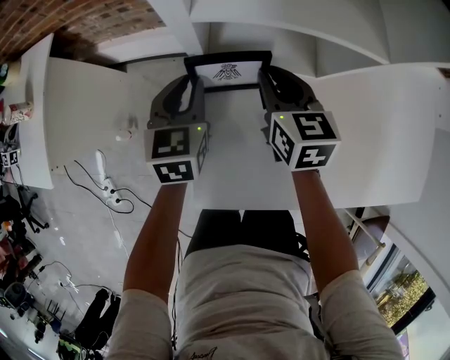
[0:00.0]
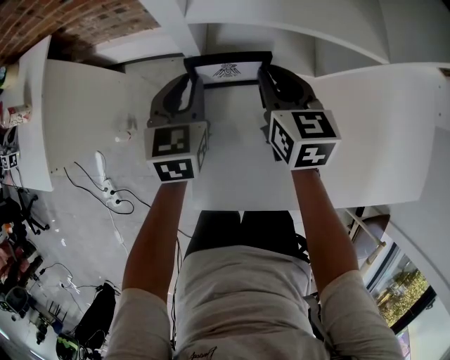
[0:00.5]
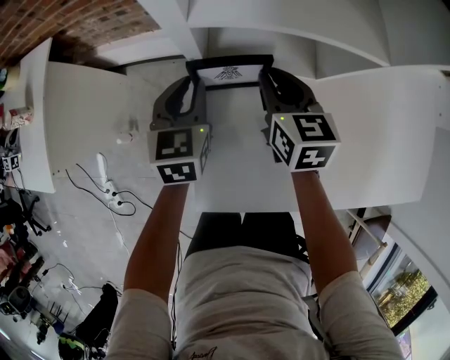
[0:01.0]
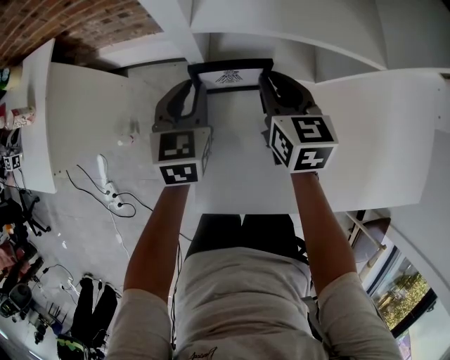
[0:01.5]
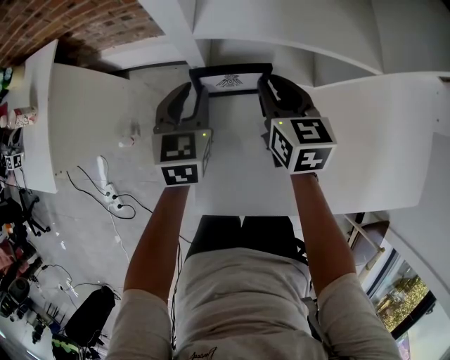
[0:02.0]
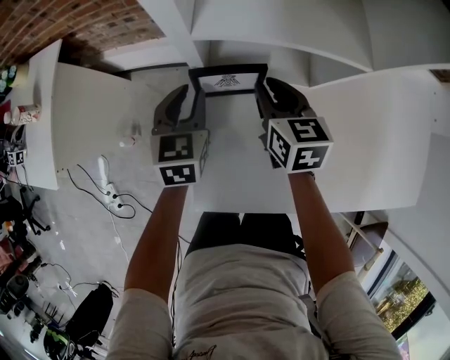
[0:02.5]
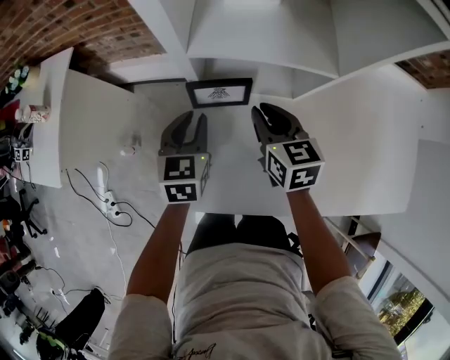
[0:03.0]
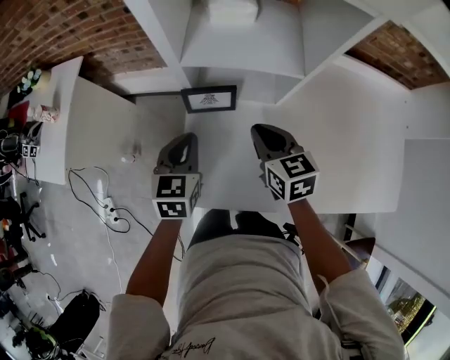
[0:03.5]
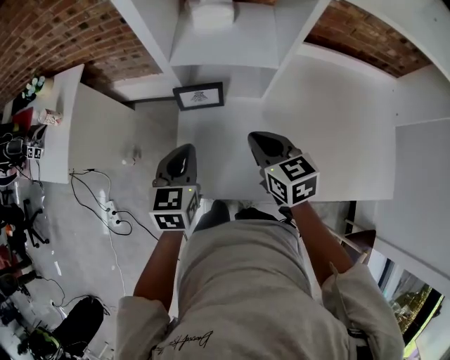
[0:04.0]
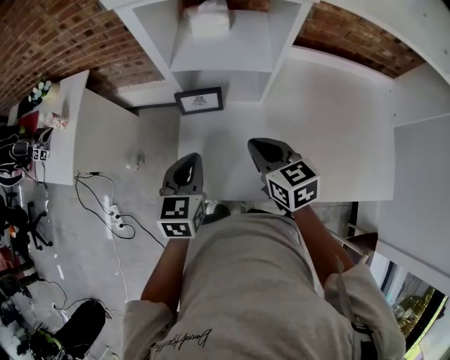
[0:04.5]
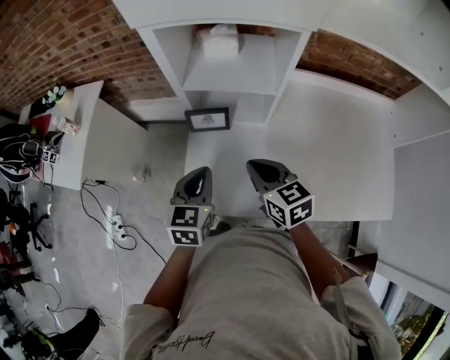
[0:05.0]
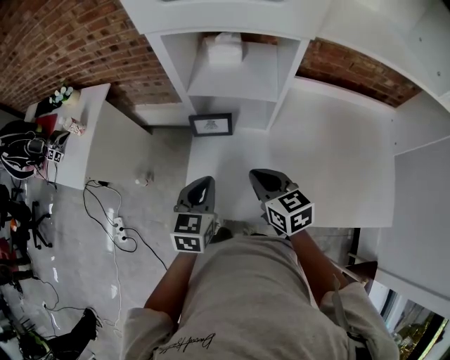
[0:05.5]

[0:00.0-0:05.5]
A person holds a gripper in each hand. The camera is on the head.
0:00.0 to 0:02.0: Neither gripper changes place.
0:02.0 to 0:03.5: Both grippers travel together backward and upward, some 15 cm.
0:03.5 to 0:05.5: Both grippers move backward and upward, approximately 15 cm.

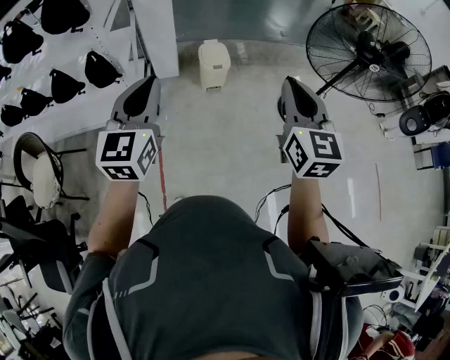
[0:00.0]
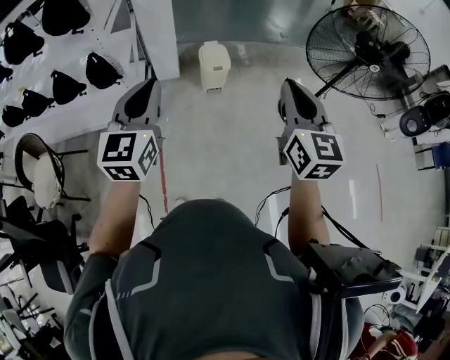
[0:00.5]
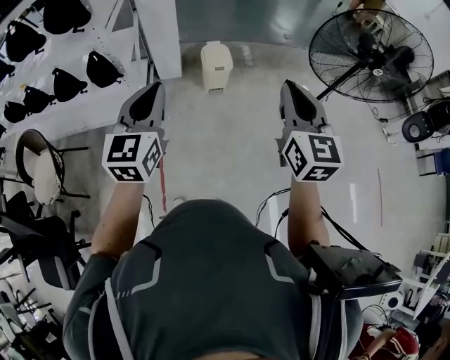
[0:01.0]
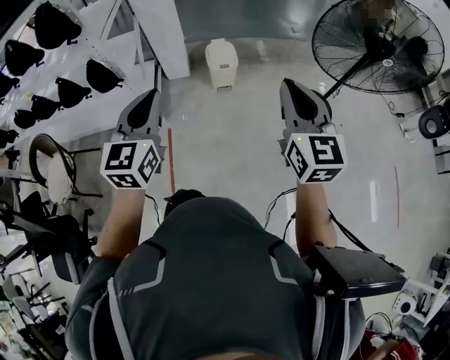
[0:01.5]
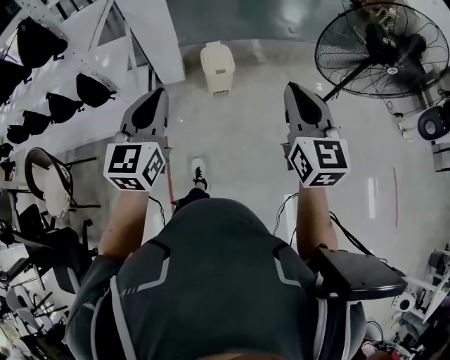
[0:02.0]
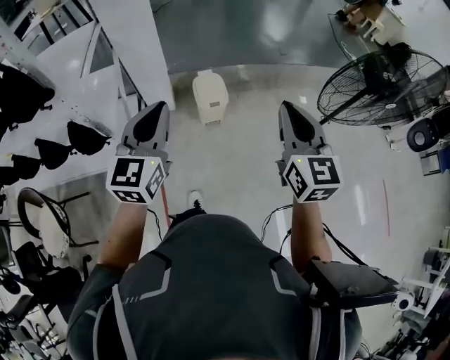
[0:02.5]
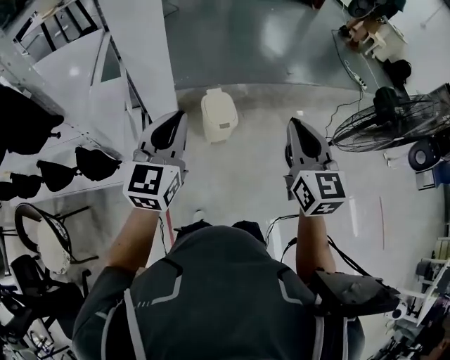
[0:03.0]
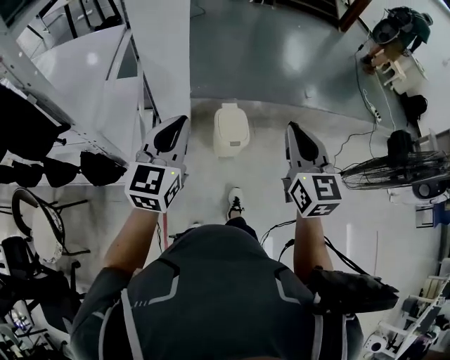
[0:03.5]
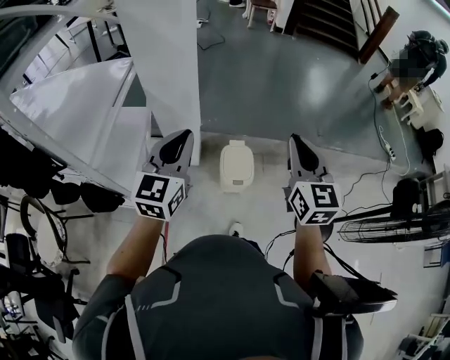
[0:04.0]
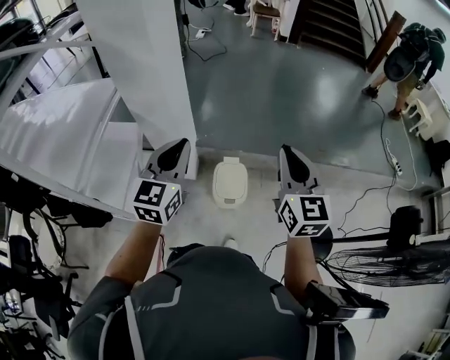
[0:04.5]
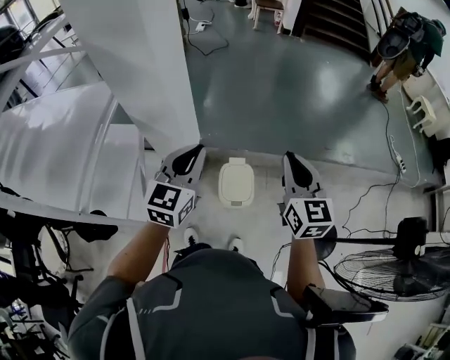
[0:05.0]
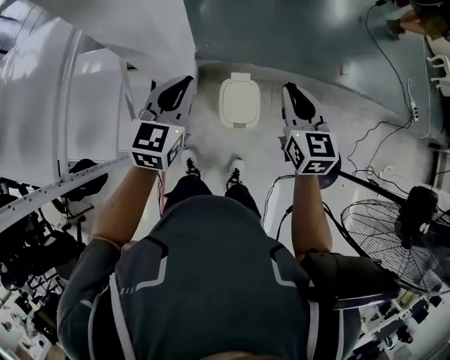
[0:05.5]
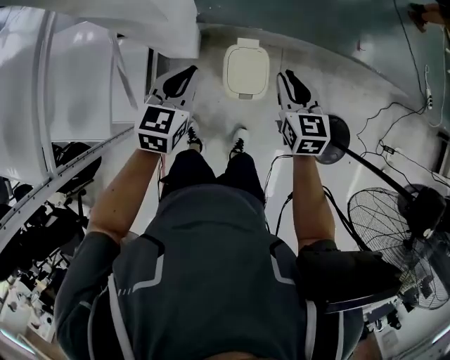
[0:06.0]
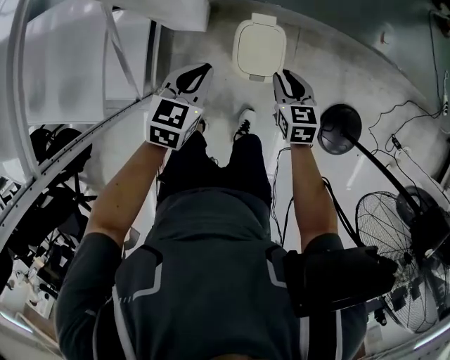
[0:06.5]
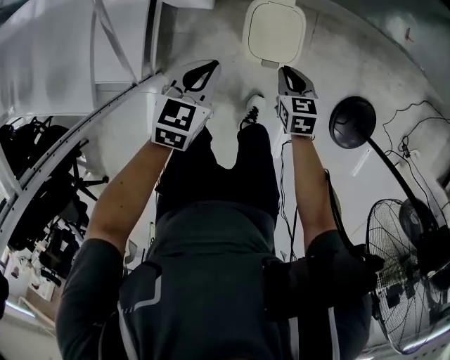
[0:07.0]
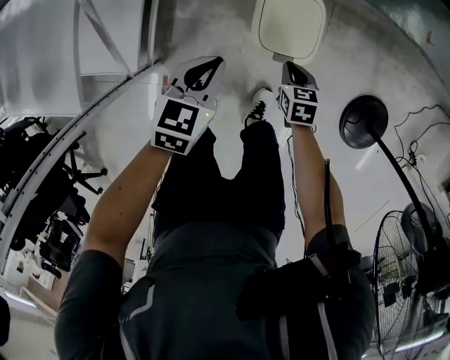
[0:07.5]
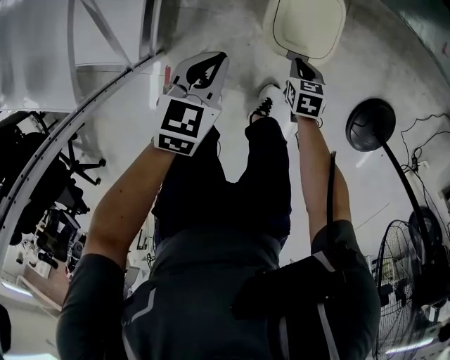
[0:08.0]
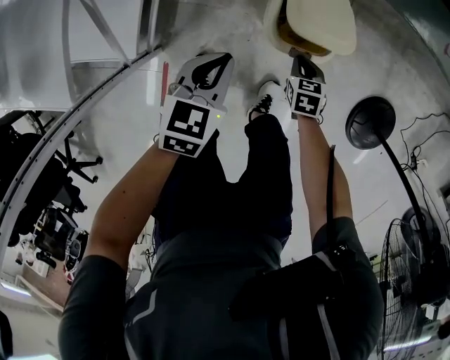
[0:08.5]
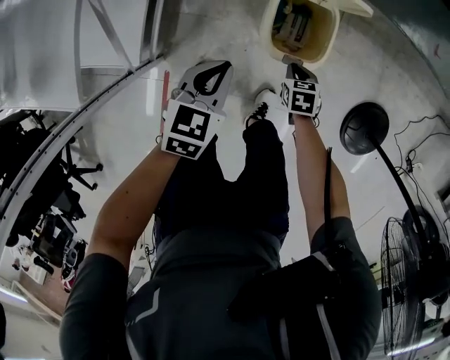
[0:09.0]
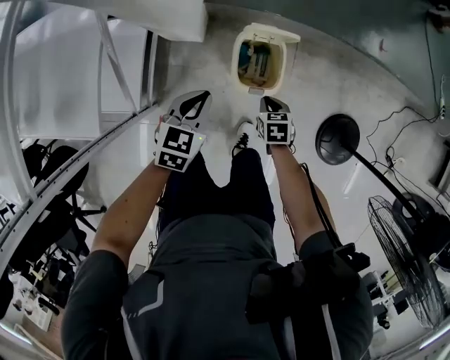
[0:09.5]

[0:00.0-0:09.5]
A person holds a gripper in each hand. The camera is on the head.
0:00.0 to 0:02.0: The grippers both shift forward and to the right by some 10 cm.
0:02.0 to 0:04.0: Both grippers are carried forward, some 50 cm.
0:04.0 to 0:05.5: Both grippers travel together forward and downward, roughly 30 cm.
0:05.5 to 0:07.5: Both grippers move downward, roughly 50 cm. The right gripper tilts its fingers some 40 degrees downward, while the left gripper changes its angle by approximately 30 degrees.
0:07.5 to 0:09.5: Both grippers travel together upward, about 10 cm.

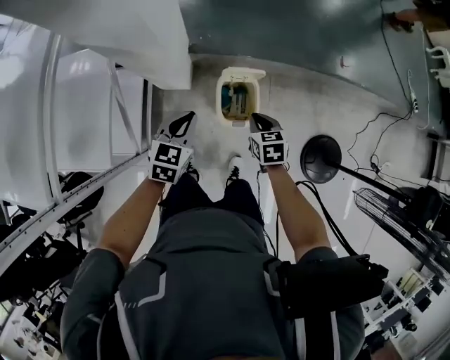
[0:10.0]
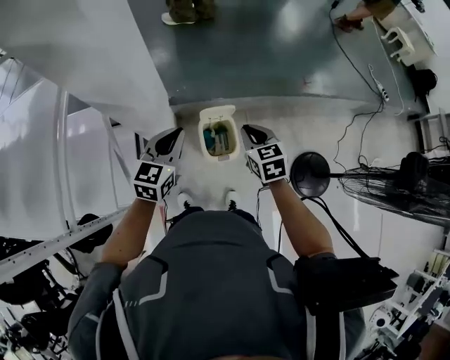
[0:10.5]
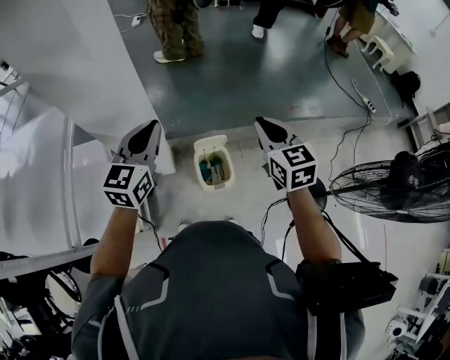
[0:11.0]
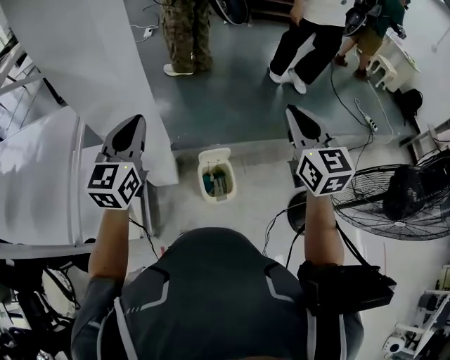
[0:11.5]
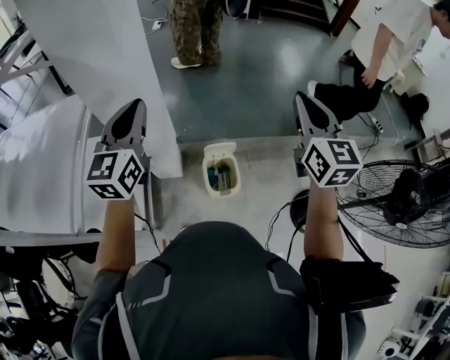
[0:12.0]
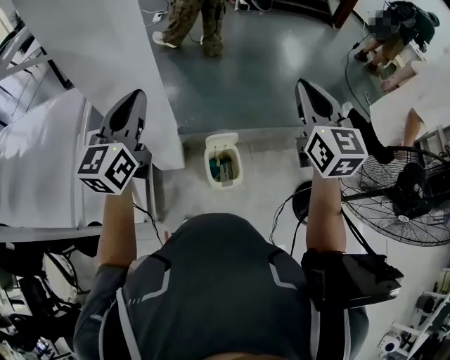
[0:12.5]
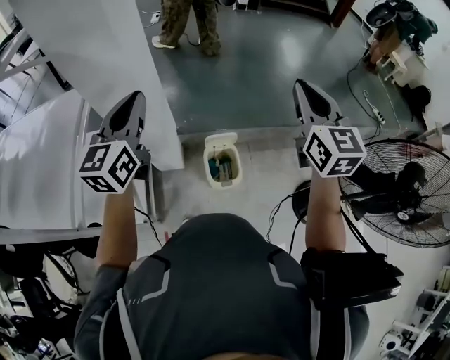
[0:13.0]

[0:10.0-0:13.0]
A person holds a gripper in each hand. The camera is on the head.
0:10.0 to 0:11.5: The two grippers go some 40 cm upward. The right gripper angles its fingers upward, by about 50 degrees. Meanwhile the left gripper tips its fingers upward by roughly 30 degrees.
0:11.5 to 0:13.0: There are only small adjustments of the grippers.

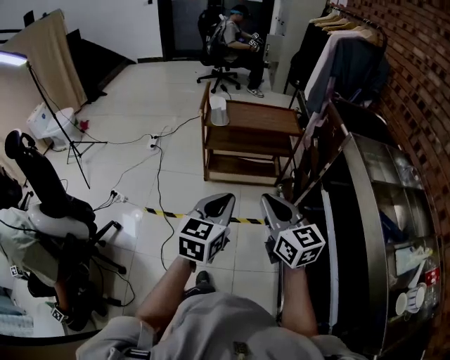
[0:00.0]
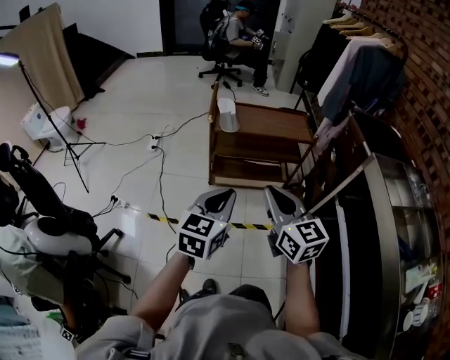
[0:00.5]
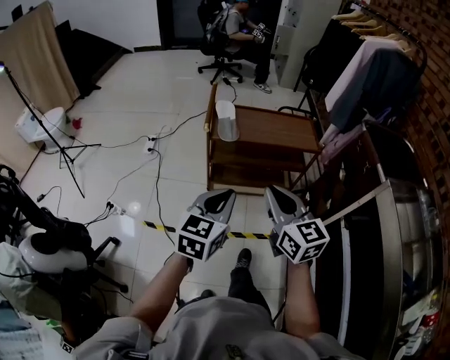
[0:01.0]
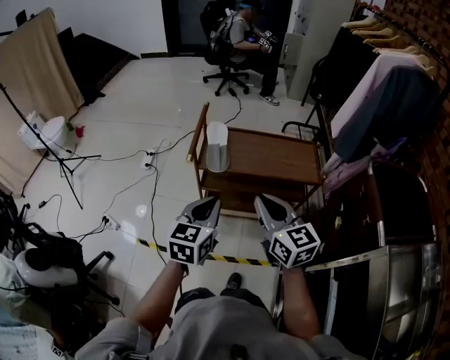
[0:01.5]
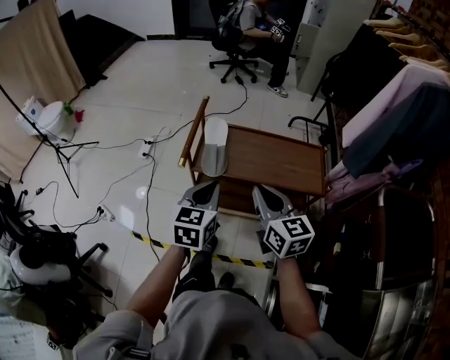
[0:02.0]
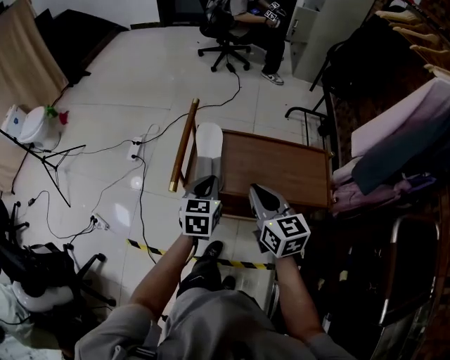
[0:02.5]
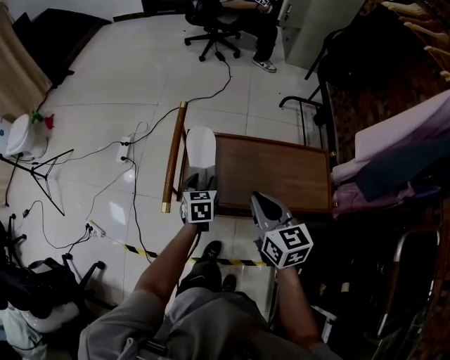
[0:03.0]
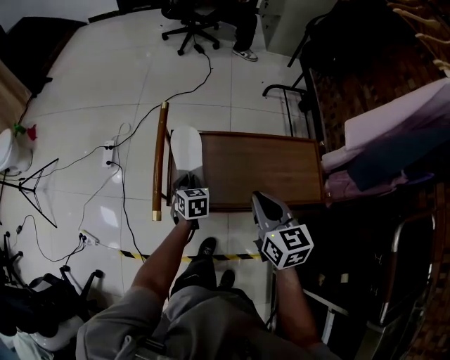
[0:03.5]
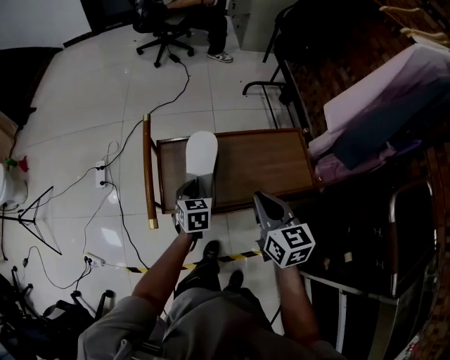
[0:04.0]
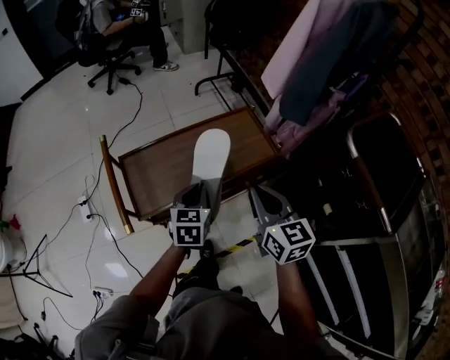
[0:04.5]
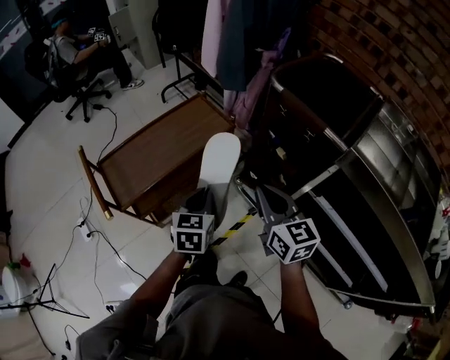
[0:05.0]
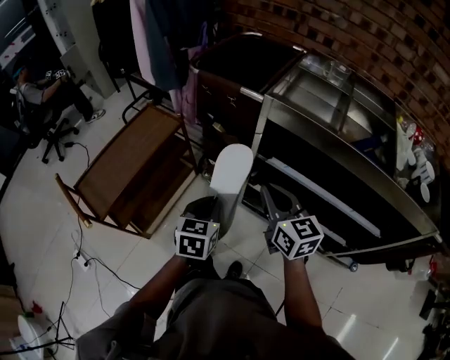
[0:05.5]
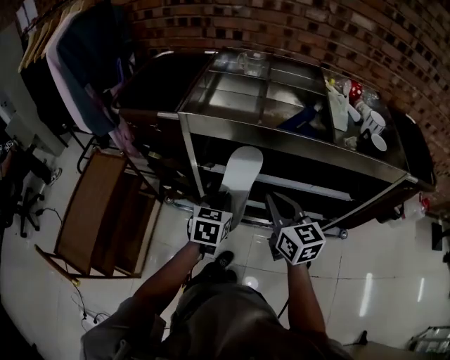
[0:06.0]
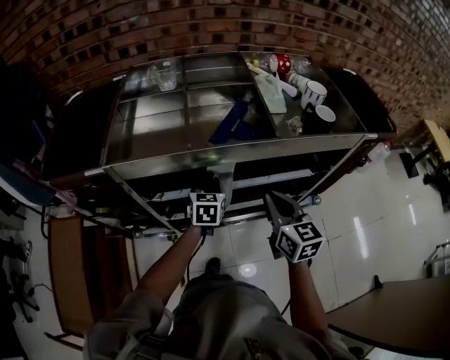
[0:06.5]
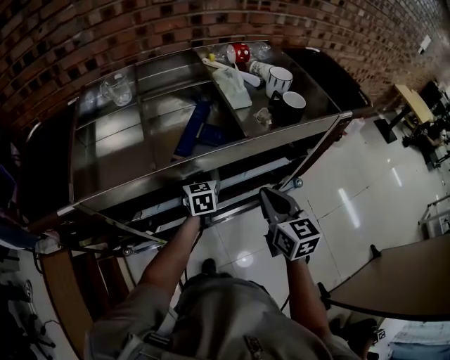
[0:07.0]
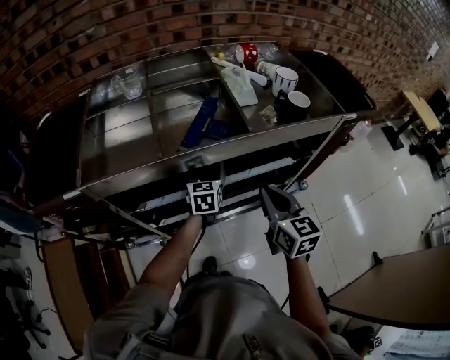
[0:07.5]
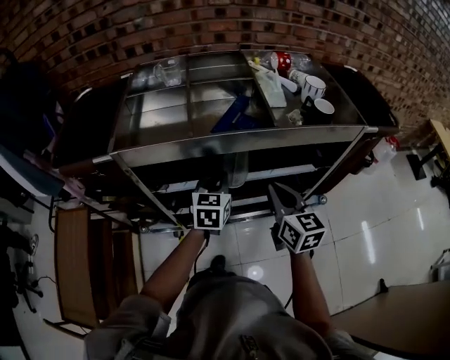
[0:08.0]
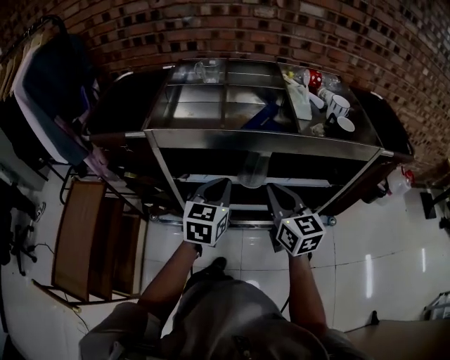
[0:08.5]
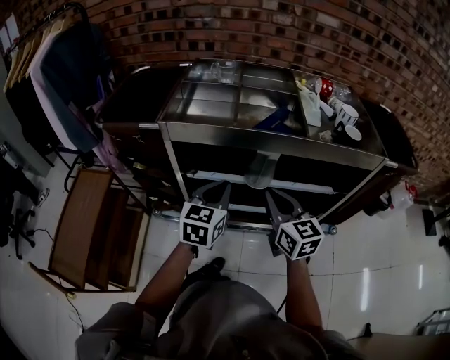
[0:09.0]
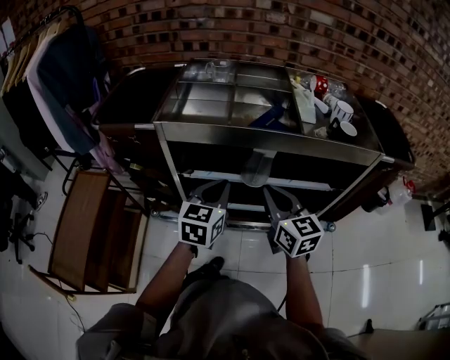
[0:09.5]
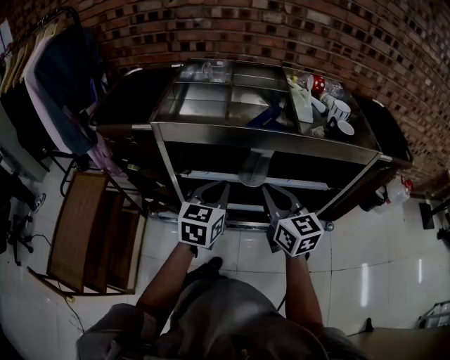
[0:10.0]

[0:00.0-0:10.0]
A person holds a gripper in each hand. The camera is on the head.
0:00.0 to 0:02.0: The pair of grippers is taken forward, about 50 cm.
0:02.0 to 0:04.0: The left gripper shifts roughly 30 cm forward and downward, and opens, then closes once more, while the right gripper goes some 15 cm forward, downward and to the right, and turns by about 20 degrees.
0:04.0 to 0:06.0: The two grippers travel together, about 70 cm. The left gripper turns by approximately 90 degrees; the right gripper rotates some 70 degrees.
0:06.0 to 0:08.0: The right gripper moves to the right, roughly 15 cm, and changes its angle by some 20 degrees. Meanwhile the left gripper shifts some 15 cm to the right and forward, and opens, then closes again.
0:08.0 to 0:10.0: The right gripper shifts roughly 10 cm to the left. Meanwhile the left gripper shifts some 15 cm backward, upward and to the left.
